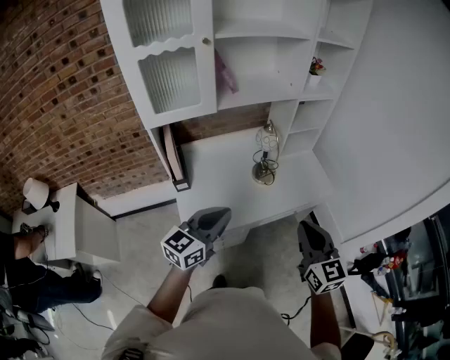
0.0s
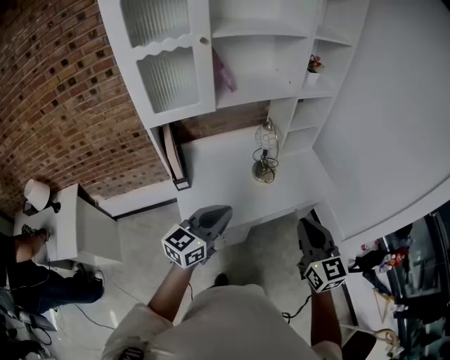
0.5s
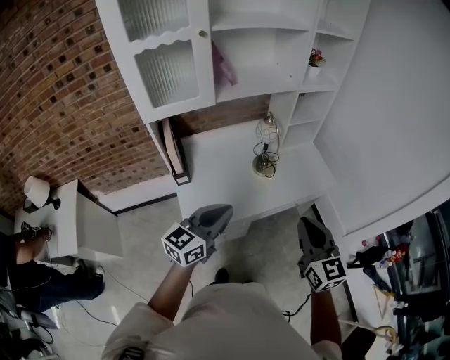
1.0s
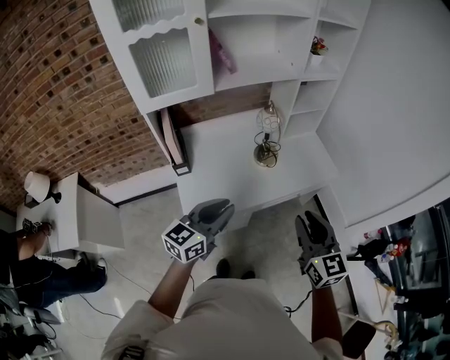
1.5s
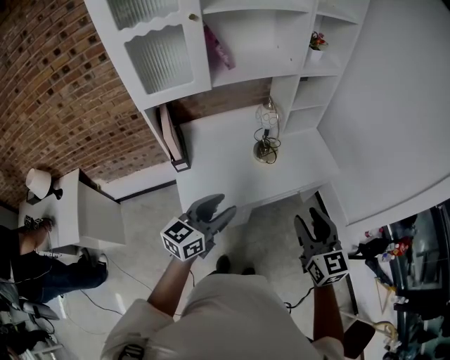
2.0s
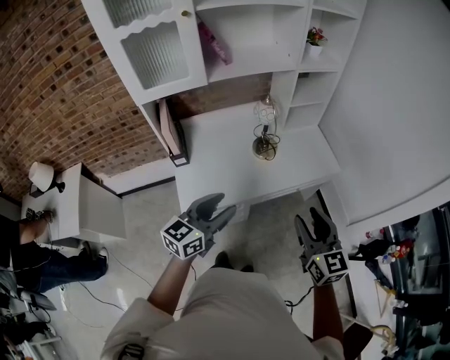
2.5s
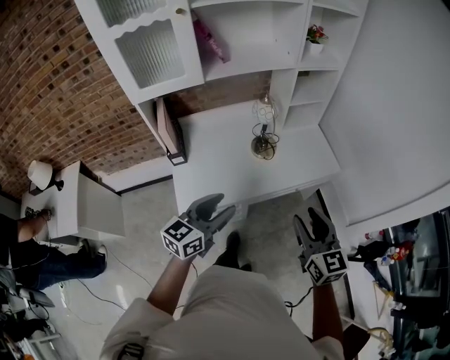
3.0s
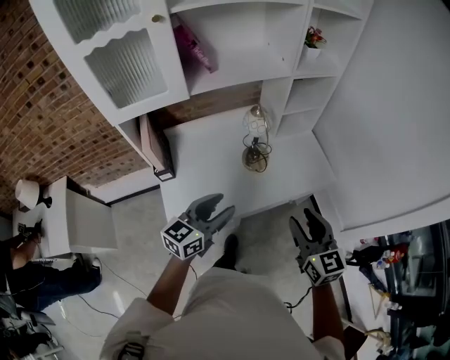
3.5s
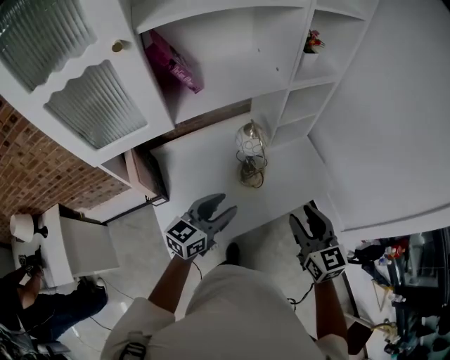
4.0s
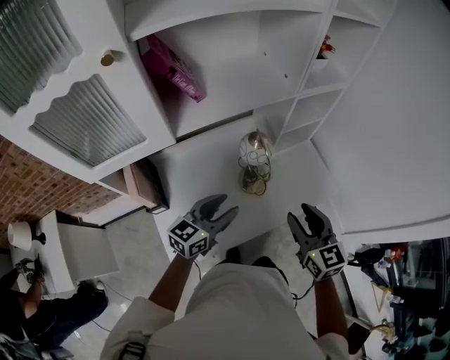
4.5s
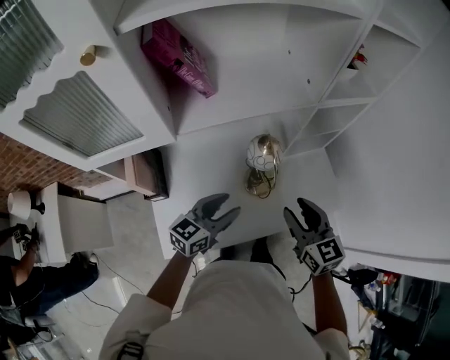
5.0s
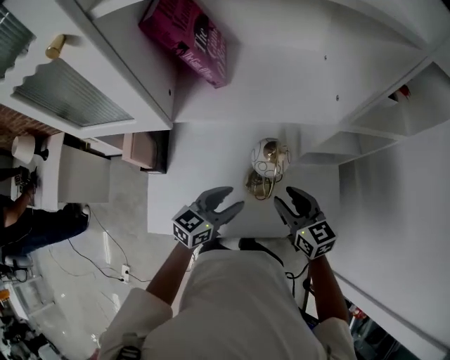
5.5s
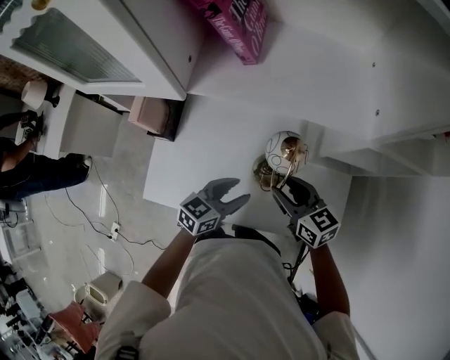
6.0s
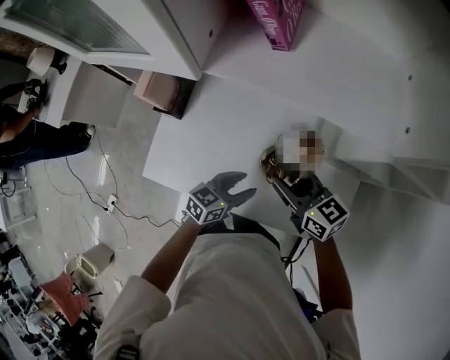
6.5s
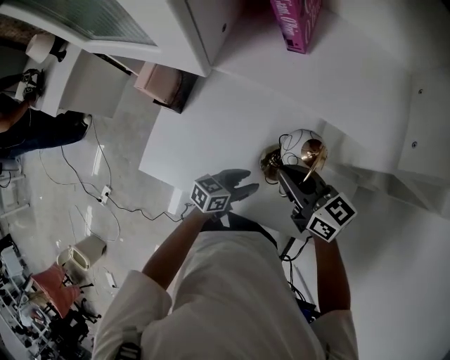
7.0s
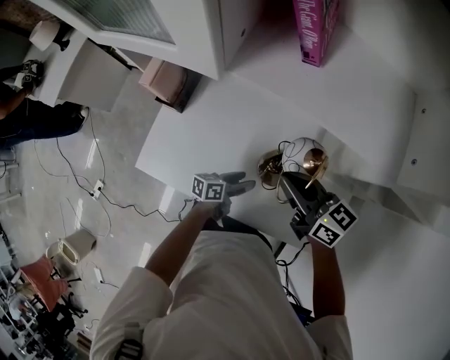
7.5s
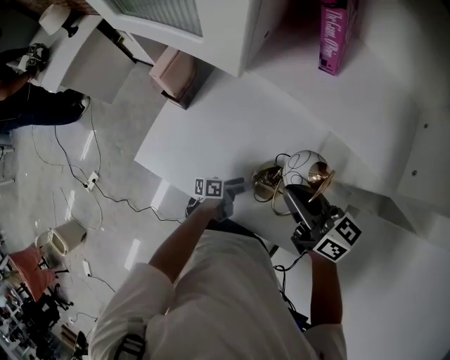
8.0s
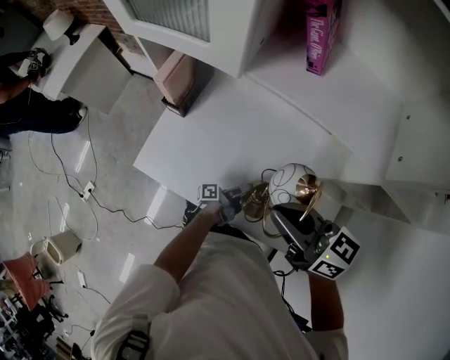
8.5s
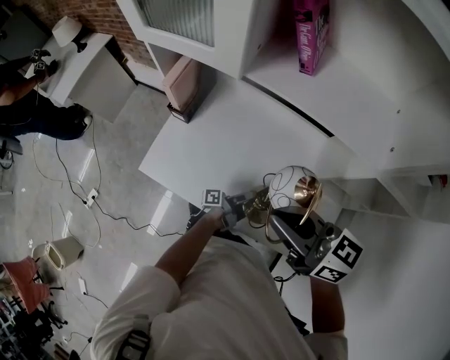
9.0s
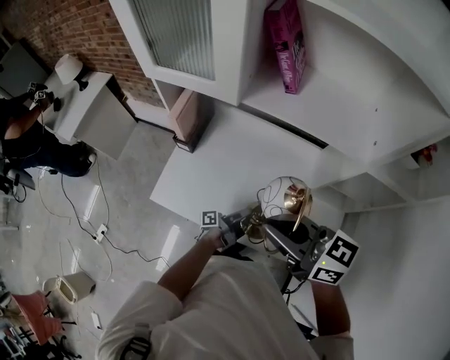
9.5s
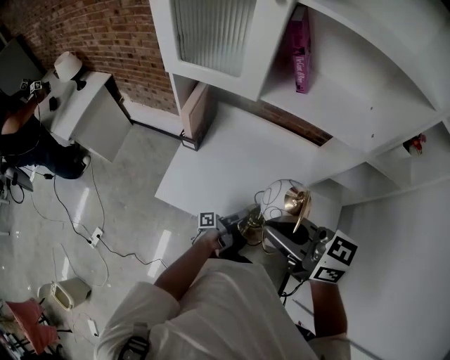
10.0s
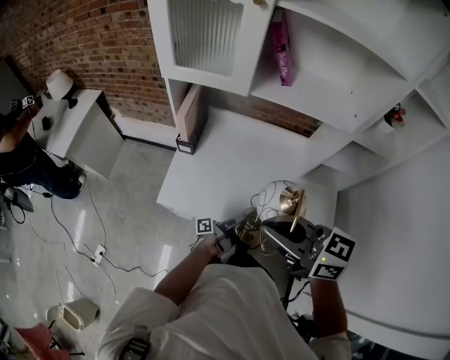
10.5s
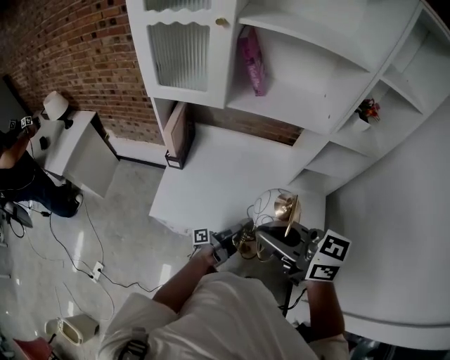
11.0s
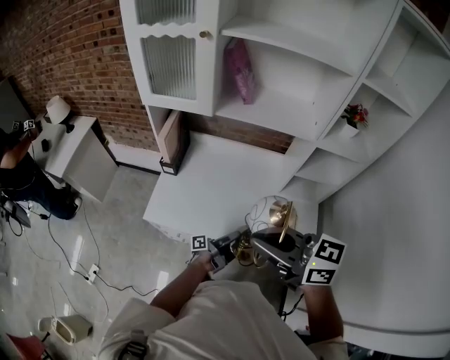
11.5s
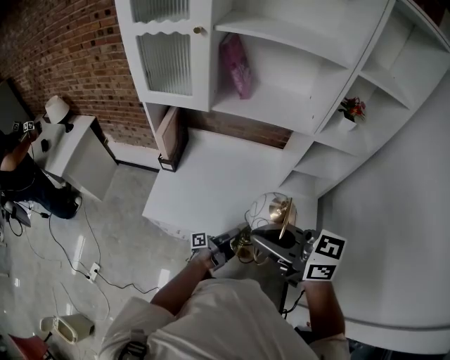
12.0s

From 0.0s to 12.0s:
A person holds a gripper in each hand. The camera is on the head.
From 0.0s to 2.0s: The left gripper opens. The right gripper opens.
From 2.0s to 4.0s: The grippers both shift forward by about 20 cm.
From 4.0s to 6.0s: The left gripper goes about 15 cm downward, and turns by some 30 degrees; the right gripper shifts by some 30 cm, and swivels roughly 50 degrees.
From 6.0s to 8.0s: The left gripper moves downward, about 20 cm, rolls counterclockwise, seen from behind, by some 60 degrees, and opens its fingers, while the right gripper shifts about 10 cm upward and to the left, changes its angle by about 30 degrees, and closes.
From 8.0s to 10.0s: The right gripper is displaced upward, backward and to the left by about 25 cm, while the left gripper moves upward, backward and to the left, roughly 15 cm, swivels approximately 30 degrees, and closes.
From 10.0s to 12.0s: The grippers both shift backward by about 10 cm.

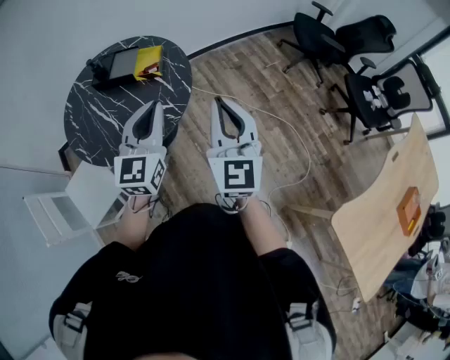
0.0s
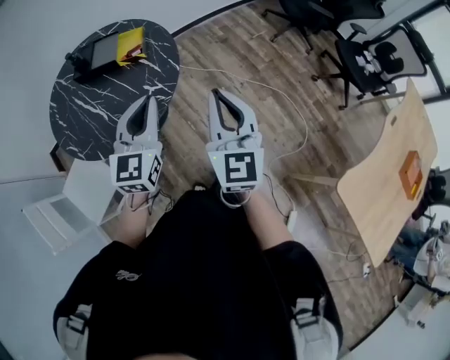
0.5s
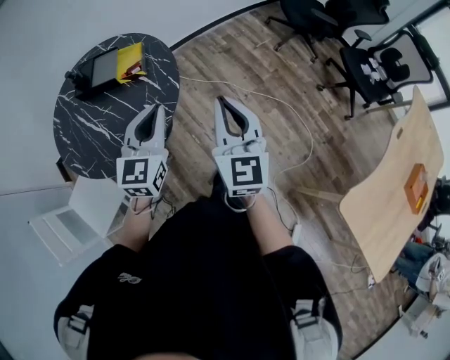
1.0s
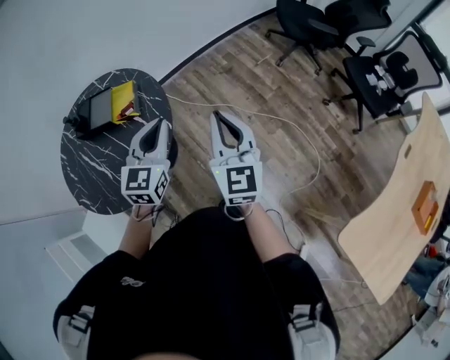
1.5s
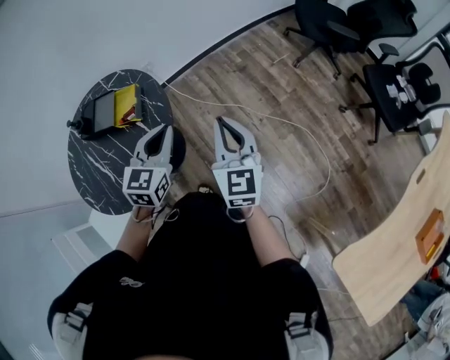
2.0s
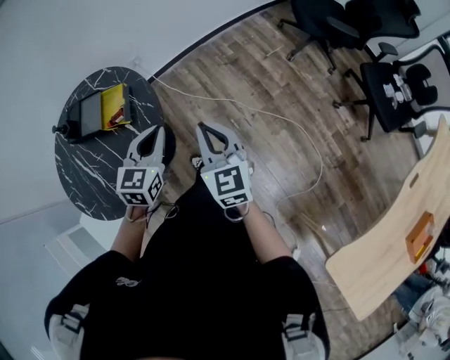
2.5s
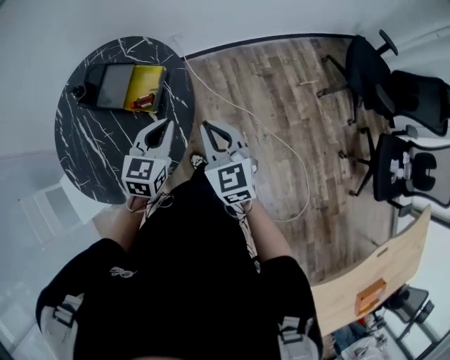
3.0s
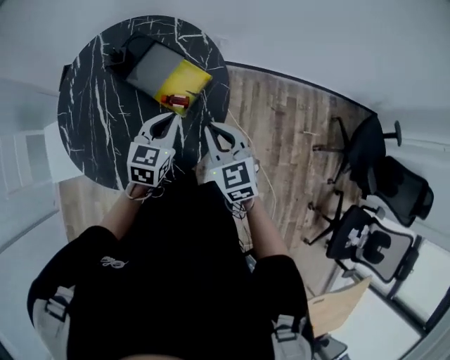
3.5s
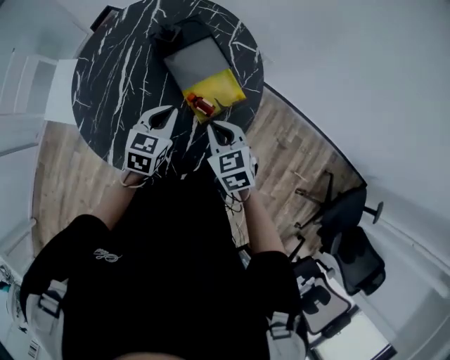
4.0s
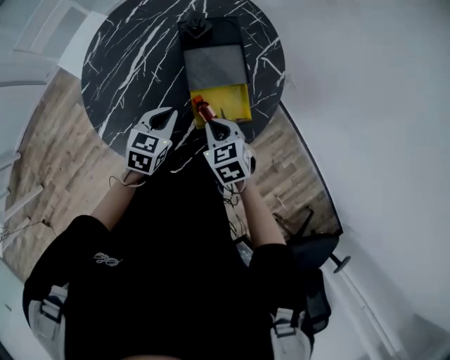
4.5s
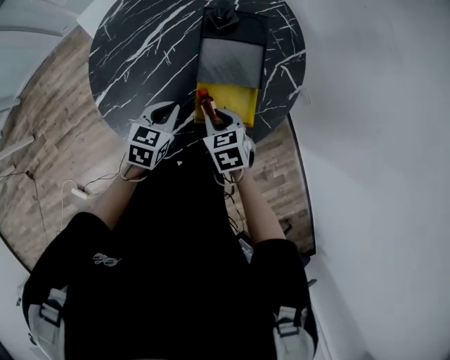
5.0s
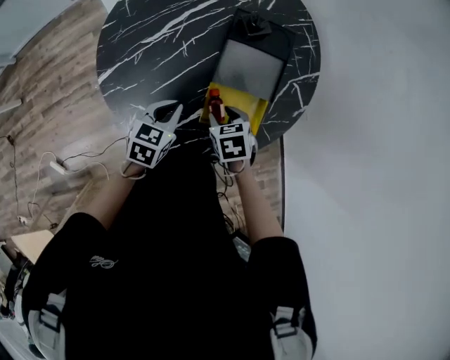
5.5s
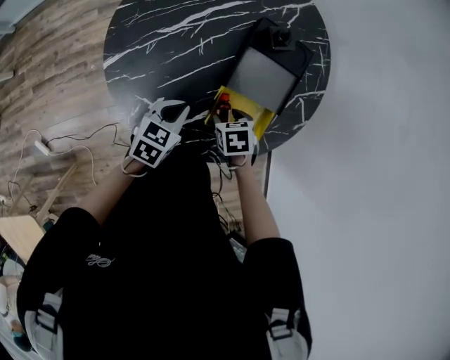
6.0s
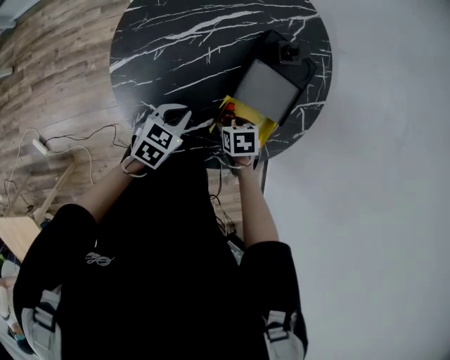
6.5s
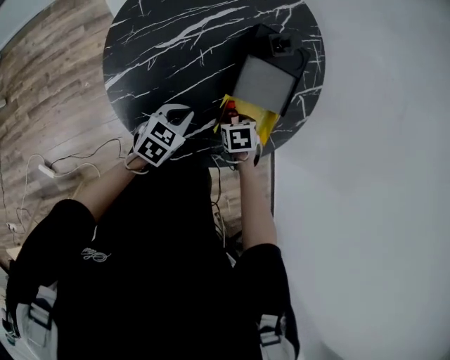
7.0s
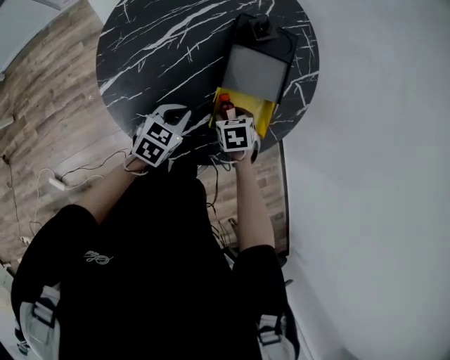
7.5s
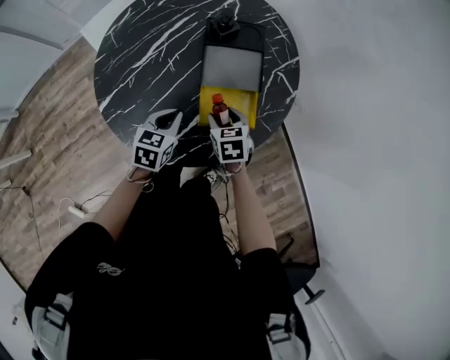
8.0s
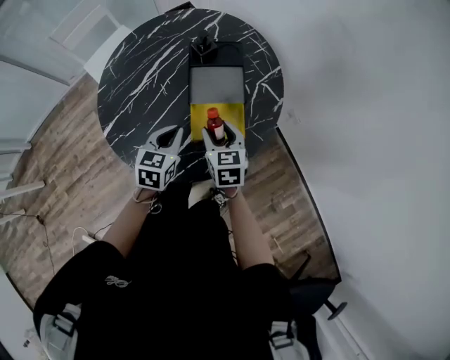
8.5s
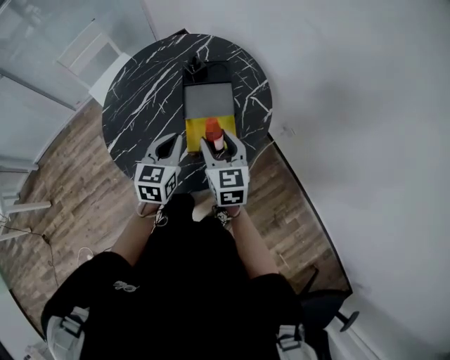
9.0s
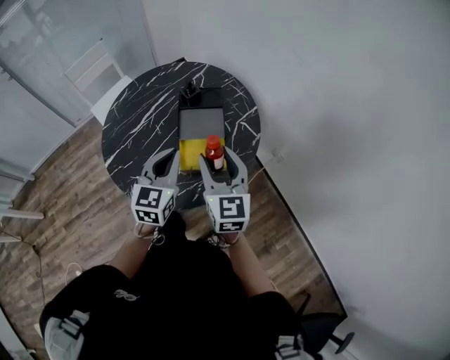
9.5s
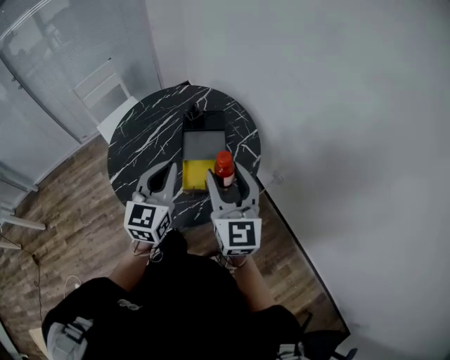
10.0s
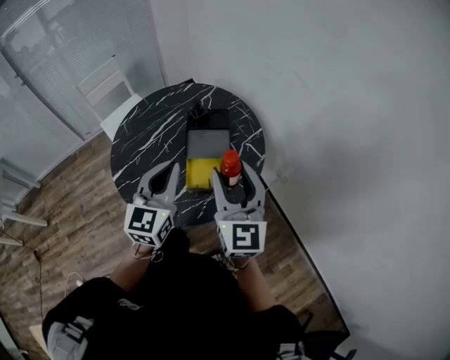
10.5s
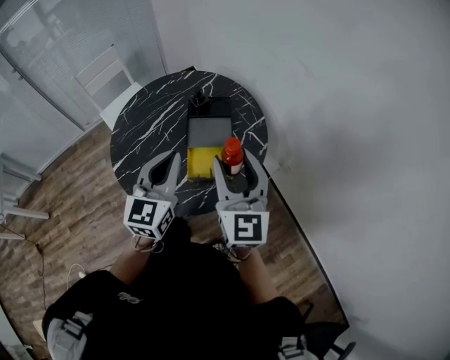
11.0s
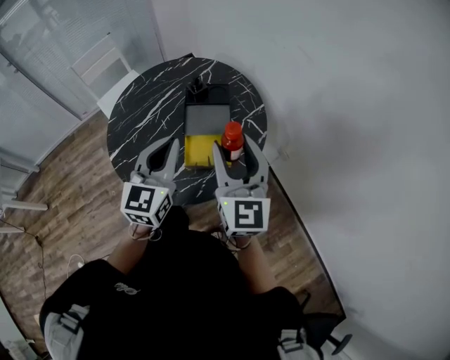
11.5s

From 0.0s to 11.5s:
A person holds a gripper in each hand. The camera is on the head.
From 0.0s to 2.0s: The grippers both shift forward, to the right and downward by approximately 30 cm. The left gripper changes its angle by approximately 20 degrees.
From 2.0s to 4.0s: The left gripper ends up about 40 cm from where it was, and swivels approximately 60 degrees. Meanwhile the right gripper ends up about 50 cm from where it was, and tilts its fingers about 40 degrees downward.
From 4.0s to 6.0s: The left gripper moves downward, roughly 10 cm, and turns by some 40 degrees; the right gripper travels downward by roughly 15 cm, tilts its fingers roughly 30 degrees downward, and opens.
From 6.0s to 7.5s: There are only small adjustments of the grippers.
From 7.5s to 9.5s: The left gripper shifts roughly 25 cm upward and to the right, and turns by roughly 40 degrees; the right gripper shifts approximately 35 cm upward, and angles its fingers upward, by roughly 70 degrees.
From 9.5s to 11.5s: The two grippers go roughly 10 cm upward.

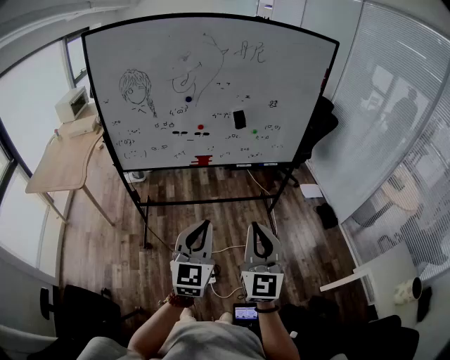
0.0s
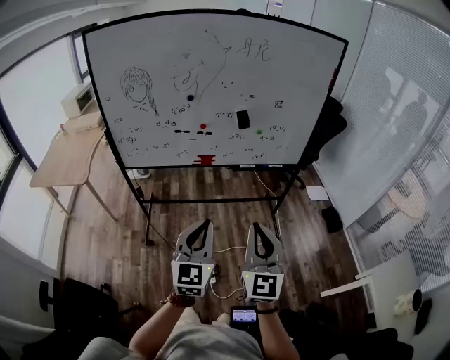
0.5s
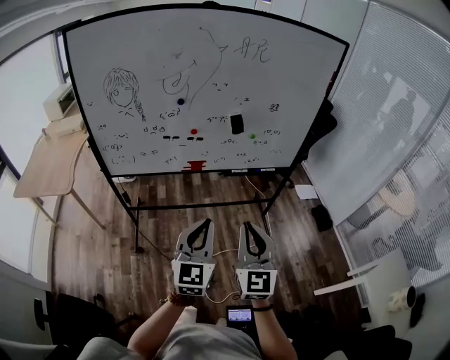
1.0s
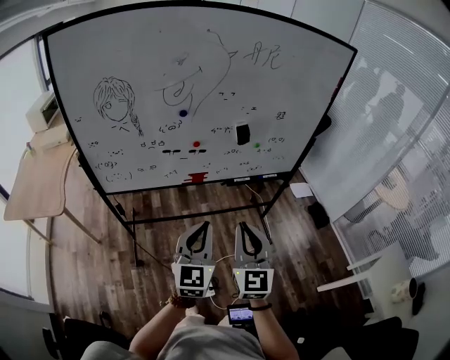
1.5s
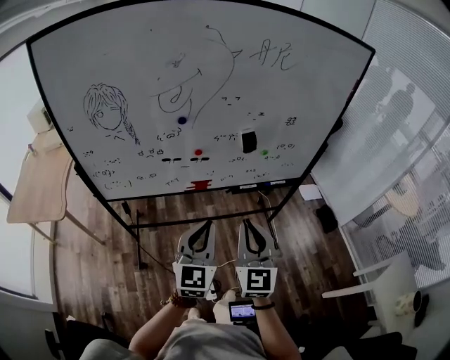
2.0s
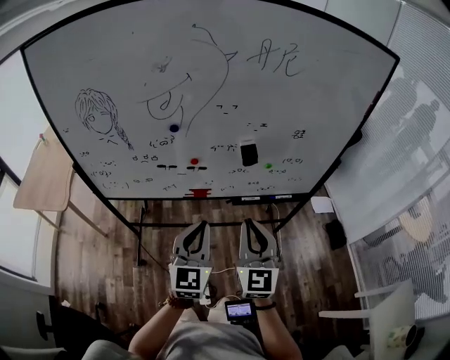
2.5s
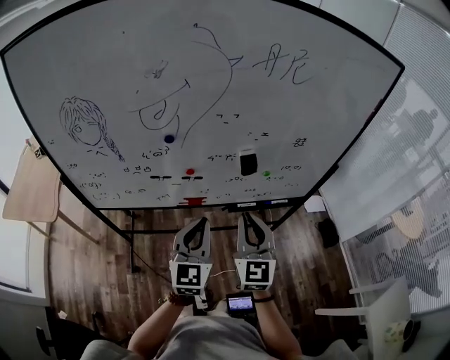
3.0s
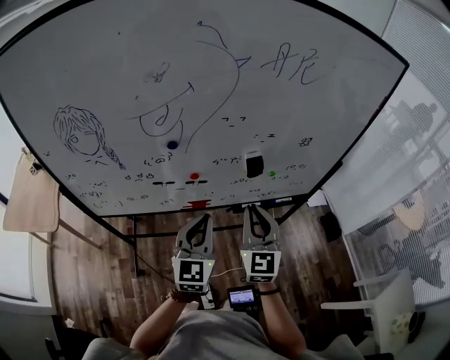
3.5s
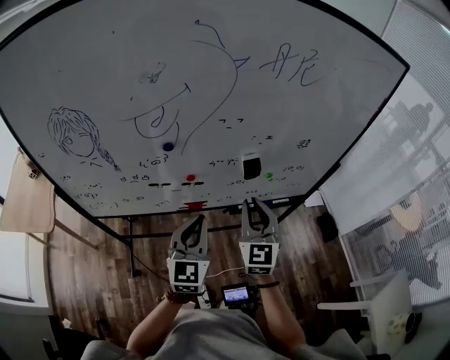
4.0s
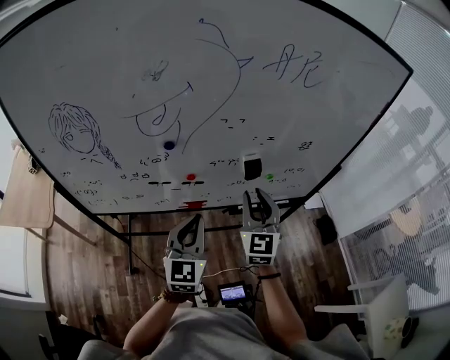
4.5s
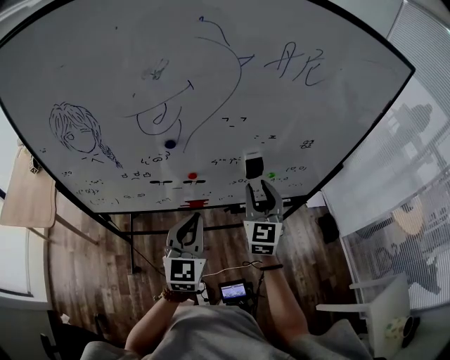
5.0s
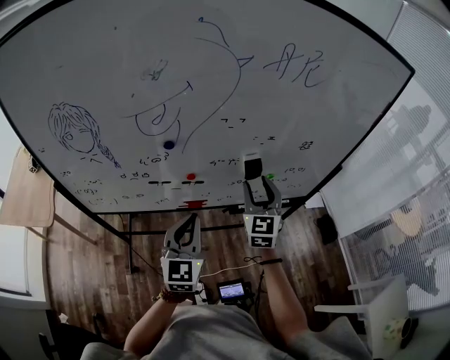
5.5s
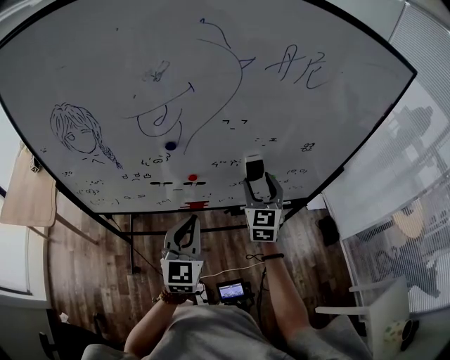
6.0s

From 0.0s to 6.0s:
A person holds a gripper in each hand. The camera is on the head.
From 0.0s to 2.0s: The grippers both shift forward by roughly 25 cm.
From 2.0s to 4.0s: The grippers both shift forward by approximately 20 cm.
From 4.0s to 6.0s: The right gripper shifts approximately 10 cm forward, and opens.
